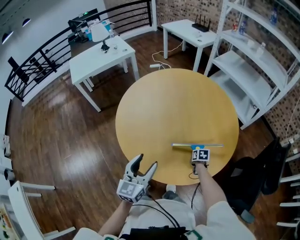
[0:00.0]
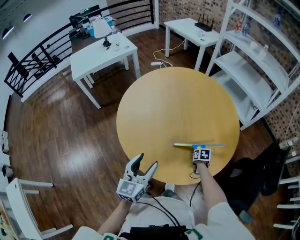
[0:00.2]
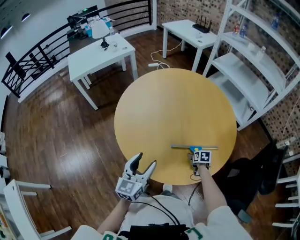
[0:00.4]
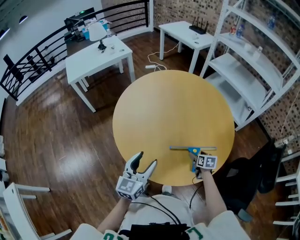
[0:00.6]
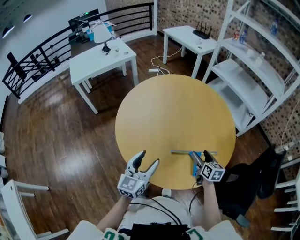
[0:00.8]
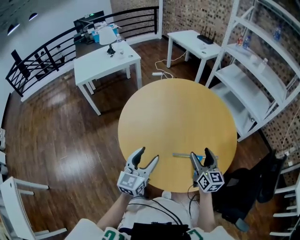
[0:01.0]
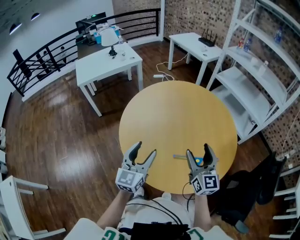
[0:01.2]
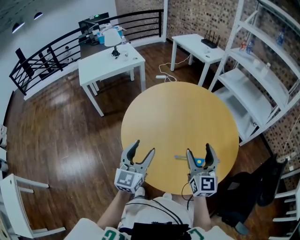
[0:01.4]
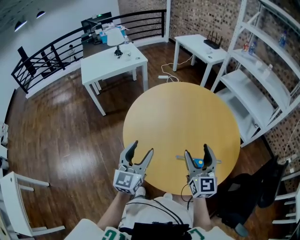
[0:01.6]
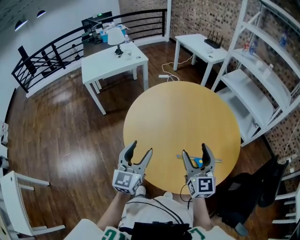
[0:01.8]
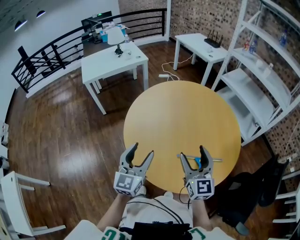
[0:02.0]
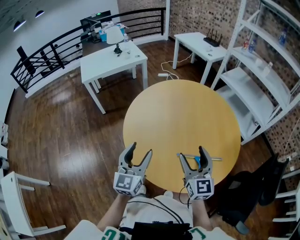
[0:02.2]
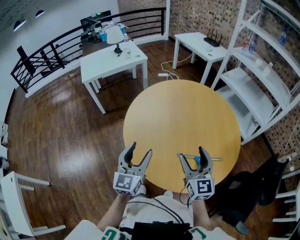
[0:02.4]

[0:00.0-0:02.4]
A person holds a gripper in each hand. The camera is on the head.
0:00.0 to 0:01.2: The right gripper goes roughly 40 cm upward, angles its fingers upward, by some 70 degrees, and opens up. The left gripper moves forward and upward, roughly 10 cm.
0:01.2 to 0:02.4: The left gripper moves roughly 5 cm. The right gripper goes some 5 cm to the left.

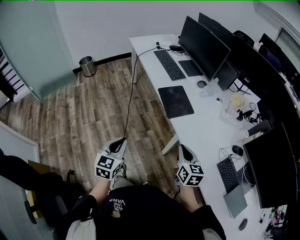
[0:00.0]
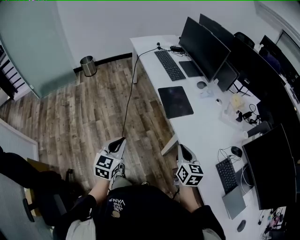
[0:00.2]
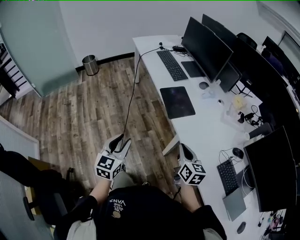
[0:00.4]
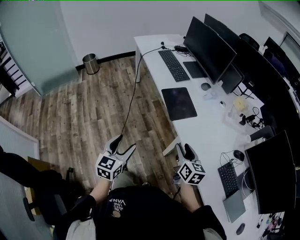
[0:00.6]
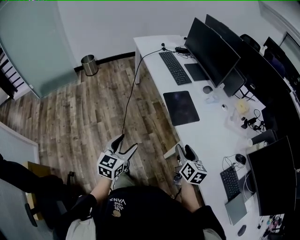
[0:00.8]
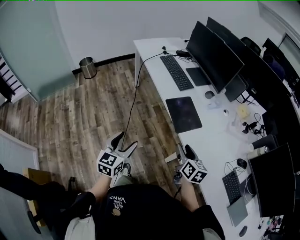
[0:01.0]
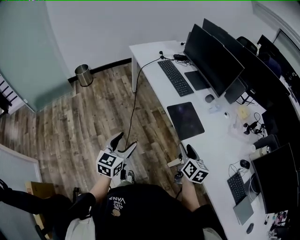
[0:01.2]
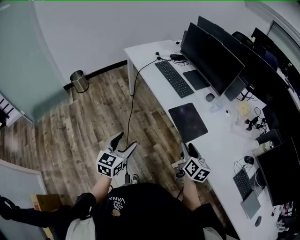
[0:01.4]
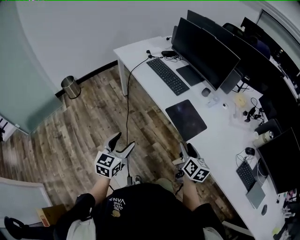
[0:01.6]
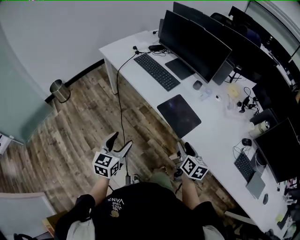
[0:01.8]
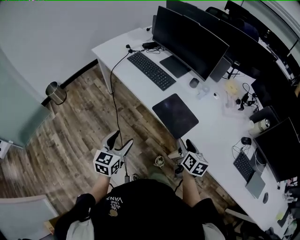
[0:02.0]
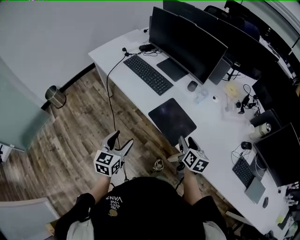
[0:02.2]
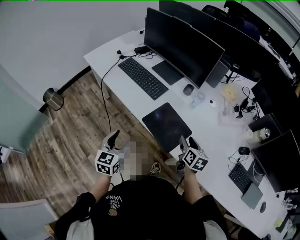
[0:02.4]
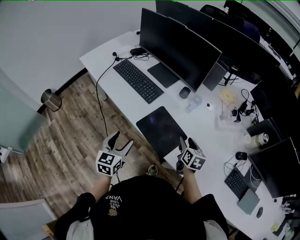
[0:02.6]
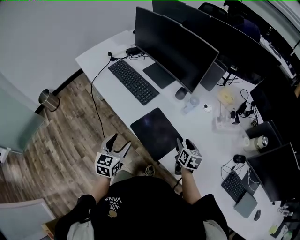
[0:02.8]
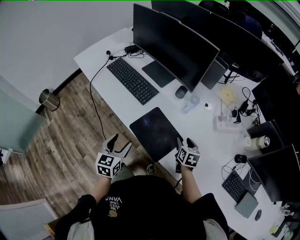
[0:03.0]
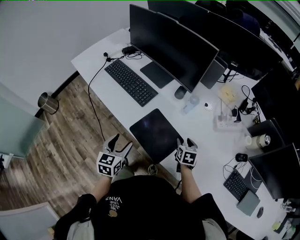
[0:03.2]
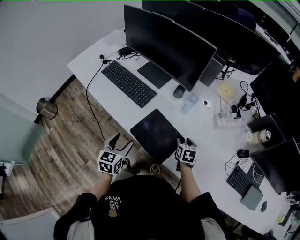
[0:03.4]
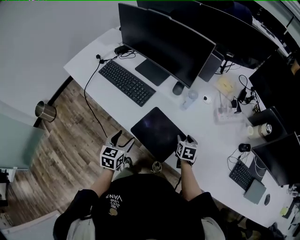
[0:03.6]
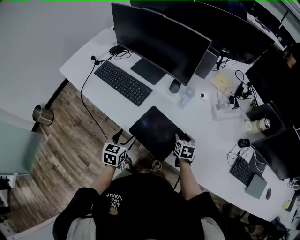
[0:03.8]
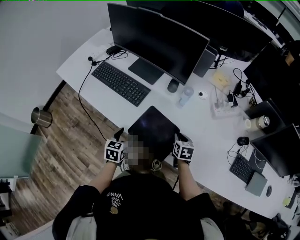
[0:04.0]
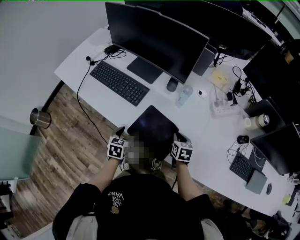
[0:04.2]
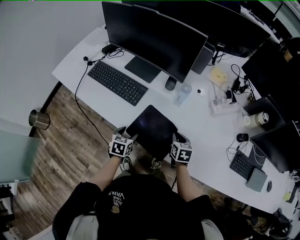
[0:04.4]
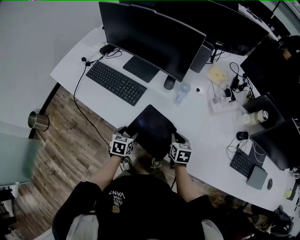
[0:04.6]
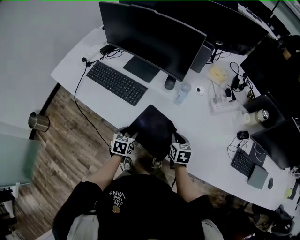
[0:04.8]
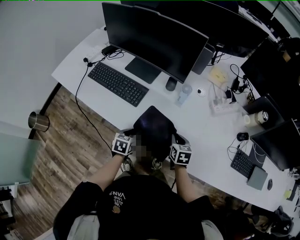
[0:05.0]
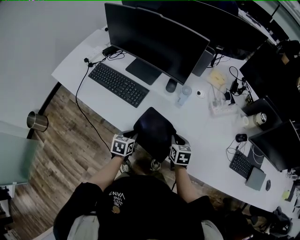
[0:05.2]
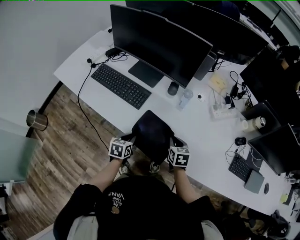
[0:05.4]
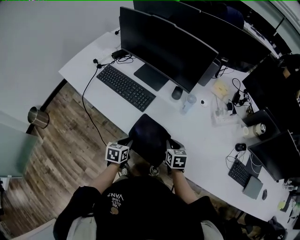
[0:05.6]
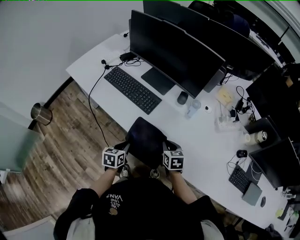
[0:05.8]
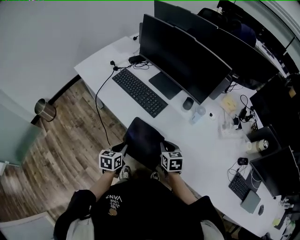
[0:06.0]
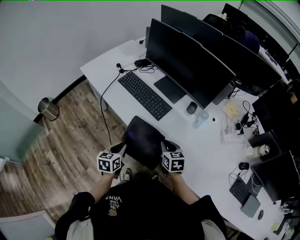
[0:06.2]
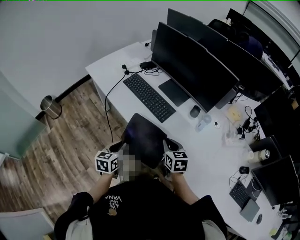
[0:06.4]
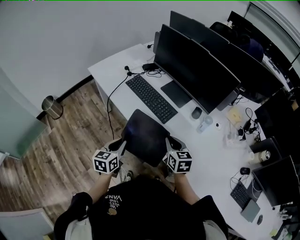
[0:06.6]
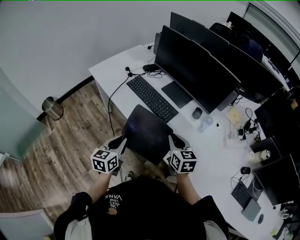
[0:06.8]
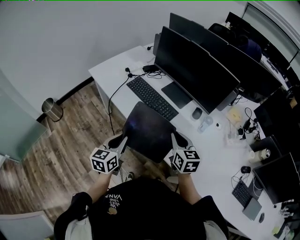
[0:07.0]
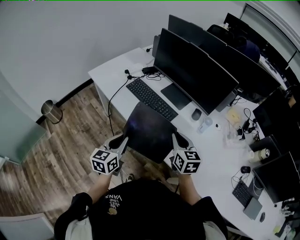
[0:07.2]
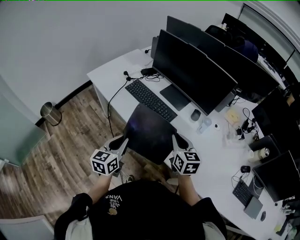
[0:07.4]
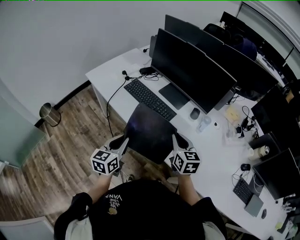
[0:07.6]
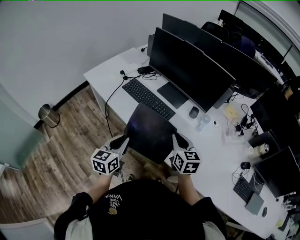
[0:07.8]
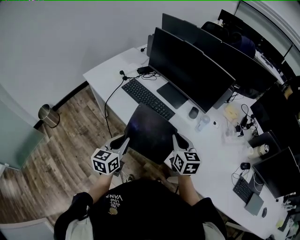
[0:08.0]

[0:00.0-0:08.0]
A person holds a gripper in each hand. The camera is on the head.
0:00.0 to 0:01.6: Both grippers travel together forward and to the left, roughly 20 cm. The left gripper opens its fingers. The right gripper rotates approximately 30 degrees, and opens its fingers.
0:01.6 to 0:03.2: The left gripper is displaced forward and to the right by some 25 cm. The right gripper moves forward, to the right and downward, roughly 30 cm, and swivels about 30 degrees.
0:03.2 to 0:04.8: The right gripper closes its fingers. Meanwhile the left gripper moves downward and forward, about 15 cm, and changes its angle by approximately 30 degrees.
0:04.8 to 0:06.4: The left gripper is displaced to the left, upward and backward by roughly 20 cm, changes its angle by some 30 degrees, and closes. Meanwhile the right gripper shifts roughly 20 cm to the left and upward, and rotates about 30 degrees.
0:06.4 to 0:08.0: The two grippers go roughly 10 cm upward.

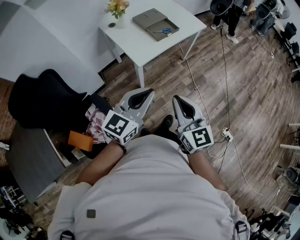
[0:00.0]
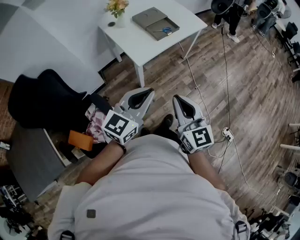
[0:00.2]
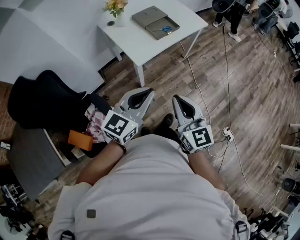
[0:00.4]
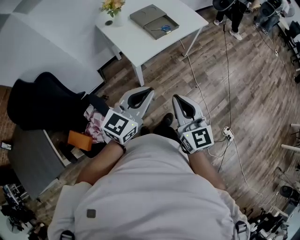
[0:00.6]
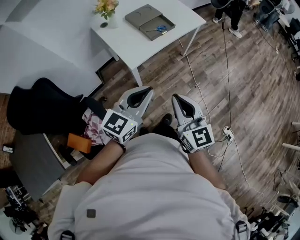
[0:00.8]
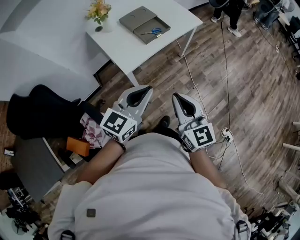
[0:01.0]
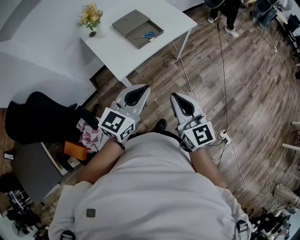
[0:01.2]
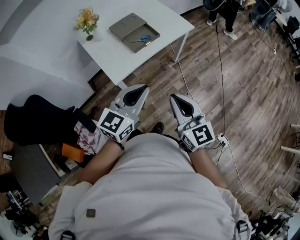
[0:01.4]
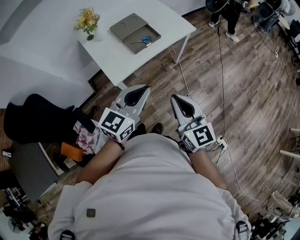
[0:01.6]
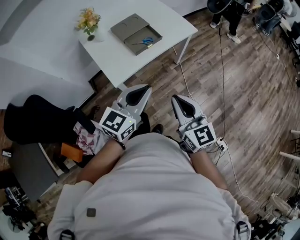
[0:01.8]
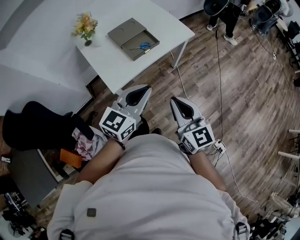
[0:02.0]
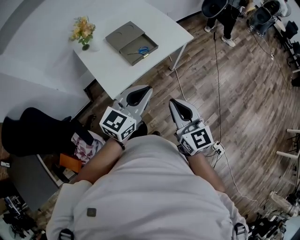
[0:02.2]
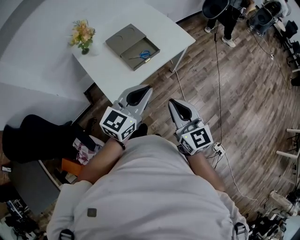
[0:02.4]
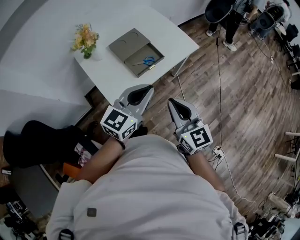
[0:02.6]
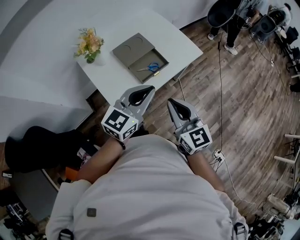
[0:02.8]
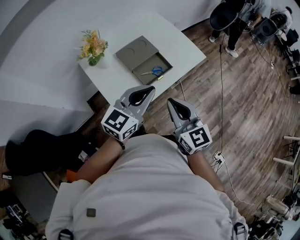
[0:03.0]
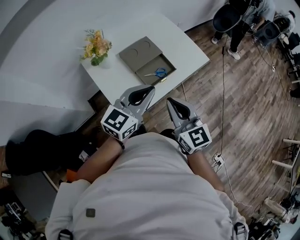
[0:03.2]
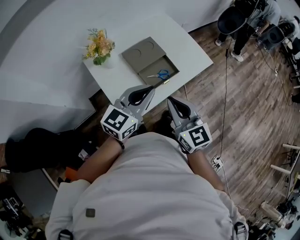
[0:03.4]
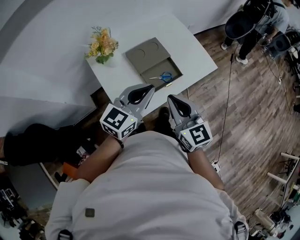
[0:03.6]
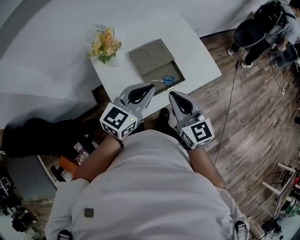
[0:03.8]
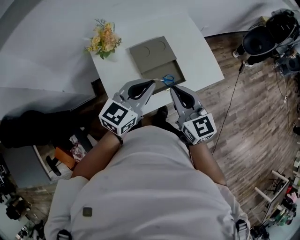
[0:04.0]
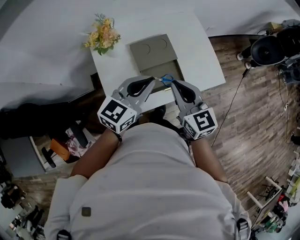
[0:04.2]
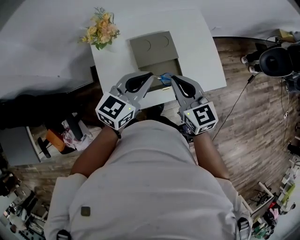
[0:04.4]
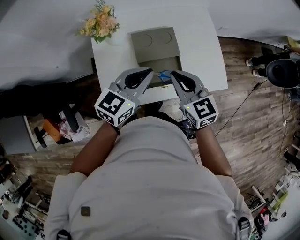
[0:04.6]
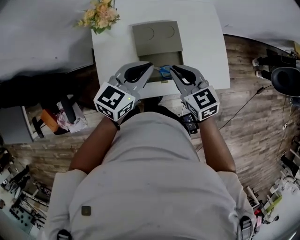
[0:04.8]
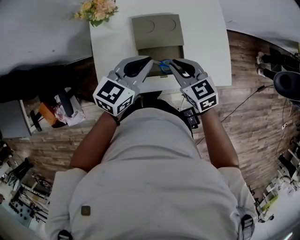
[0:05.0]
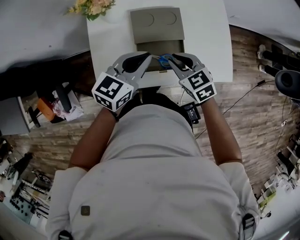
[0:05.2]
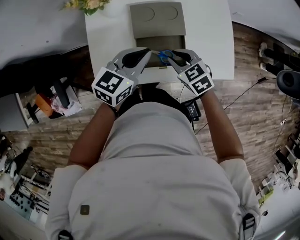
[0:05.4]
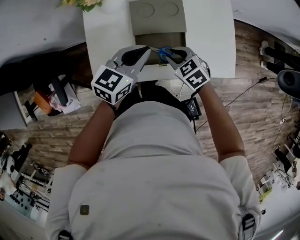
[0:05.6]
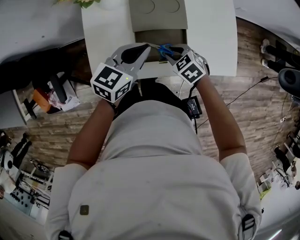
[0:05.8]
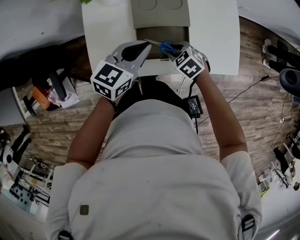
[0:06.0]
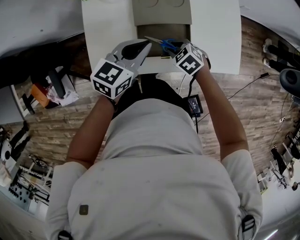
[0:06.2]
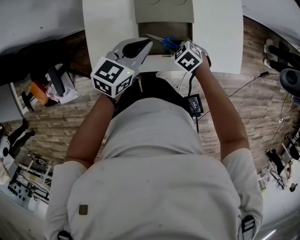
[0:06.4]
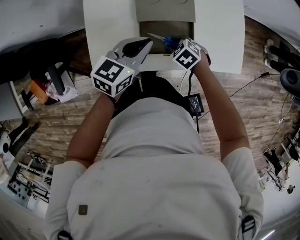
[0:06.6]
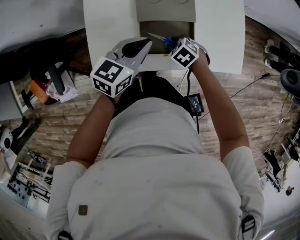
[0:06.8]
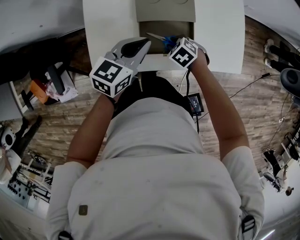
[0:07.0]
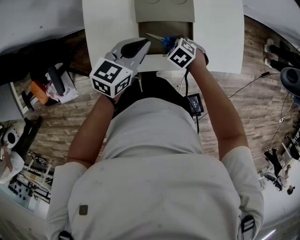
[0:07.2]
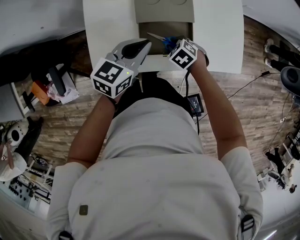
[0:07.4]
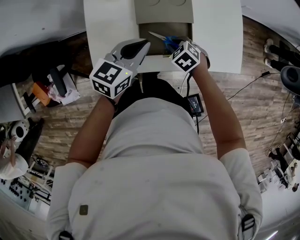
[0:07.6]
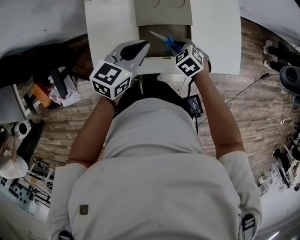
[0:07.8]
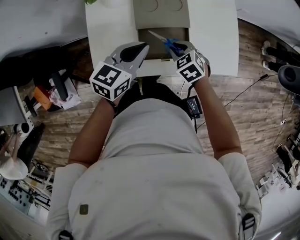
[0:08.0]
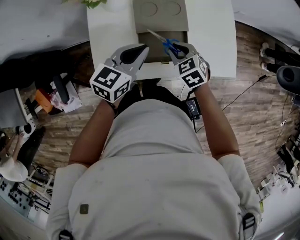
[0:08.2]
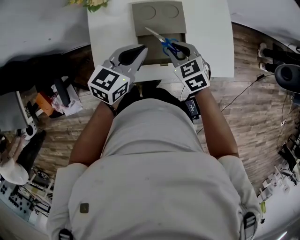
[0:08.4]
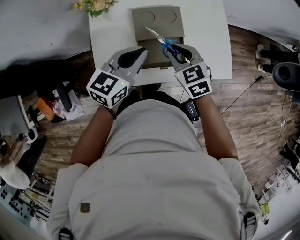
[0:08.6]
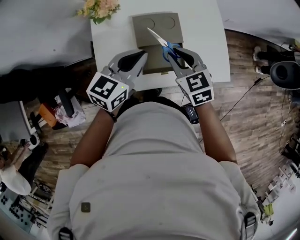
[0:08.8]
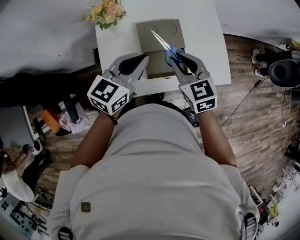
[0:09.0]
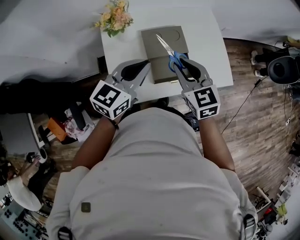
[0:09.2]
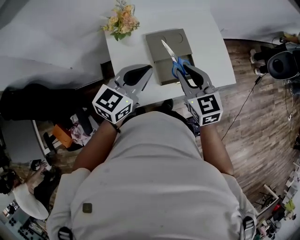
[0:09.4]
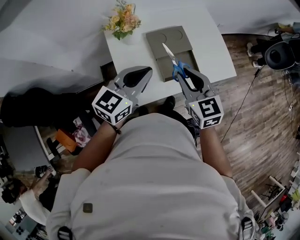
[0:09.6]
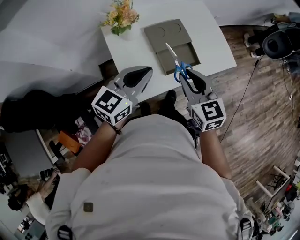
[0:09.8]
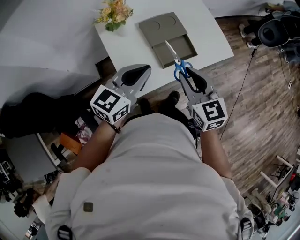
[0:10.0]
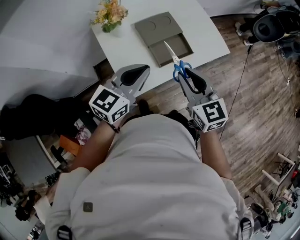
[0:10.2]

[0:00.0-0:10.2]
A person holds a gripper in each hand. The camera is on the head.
0:00.0 to 0:01.4: The two grippers go approximately 20 cm forward and to the right.
0:01.4 to 0:03.0: Both grippers move forward and to the left, approximately 25 cm.
0:03.0 to 0:04.4: The grippers both shift forward by roughly 20 cm. The left gripper changes its angle by roughly 20 degrees. Meanwhile the right gripper changes its angle by some 30 degrees.
0:04.4 to 0:05.8: The right gripper is displaced downward by roughly 25 cm, tilts its fingers some 40 degrees downward, and opens. The left gripper shifts approximately 15 cm downward.
0:05.8 to 0:07.2: The right gripper moves downward, some 5 cm.
0:07.2 to 0:08.8: The right gripper moves upward, some 25 cm, and tips its fingers upward by about 40 degrees. The left gripper heads upward, covering about 15 cm.
0:08.8 to 0:10.2: The right gripper moves backward and upward, roughly 20 cm, and turns by approximately 30 degrees. Meanwhile the left gripper heads backward and to the left, covering approximately 15 cm, and turns by about 20 degrees.

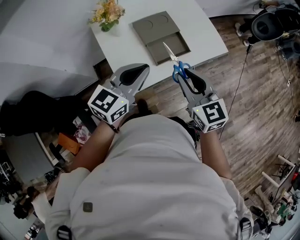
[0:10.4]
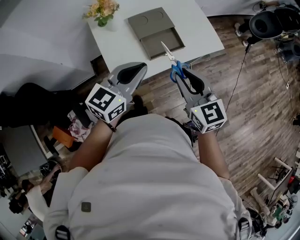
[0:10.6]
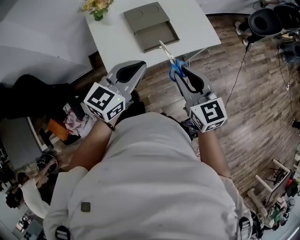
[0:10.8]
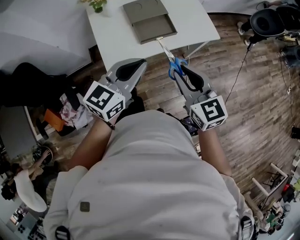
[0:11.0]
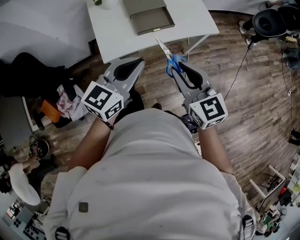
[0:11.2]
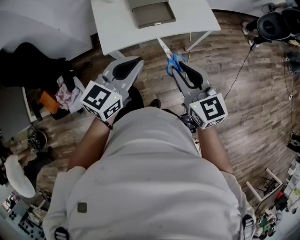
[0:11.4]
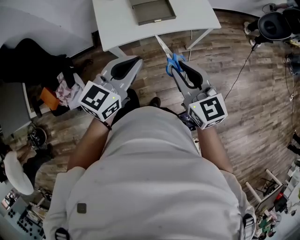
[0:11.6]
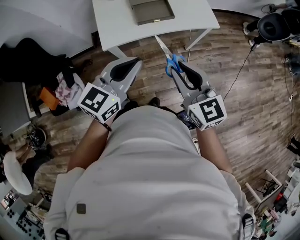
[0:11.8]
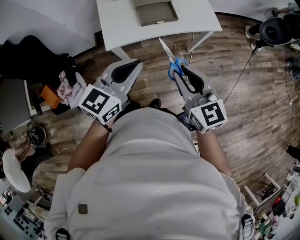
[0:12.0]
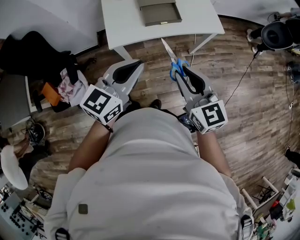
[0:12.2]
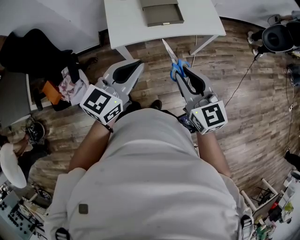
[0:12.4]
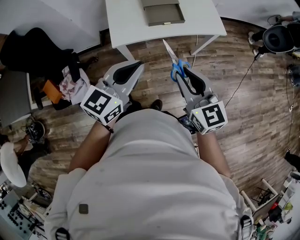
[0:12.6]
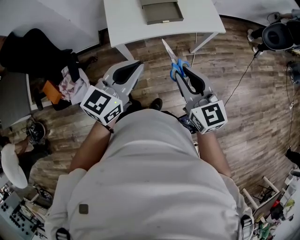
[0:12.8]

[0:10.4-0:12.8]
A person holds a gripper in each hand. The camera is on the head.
0:10.4 to 0:11.6: The two grippers go roughly 25 cm backward and to the right.
0:11.6 to 0:12.8: The left gripper changes place by roughly 5 cm.
